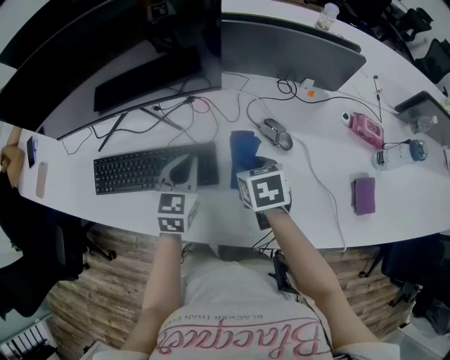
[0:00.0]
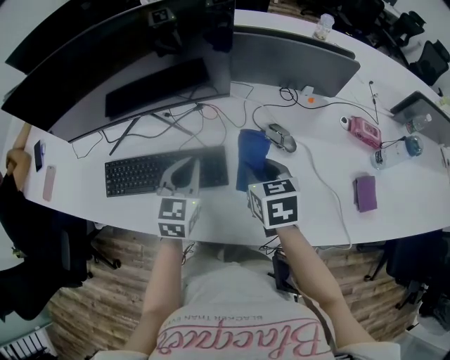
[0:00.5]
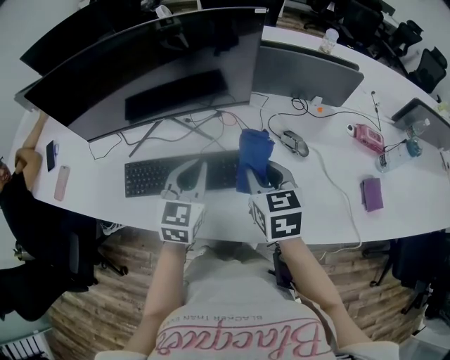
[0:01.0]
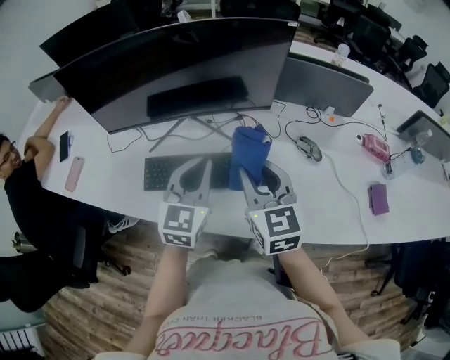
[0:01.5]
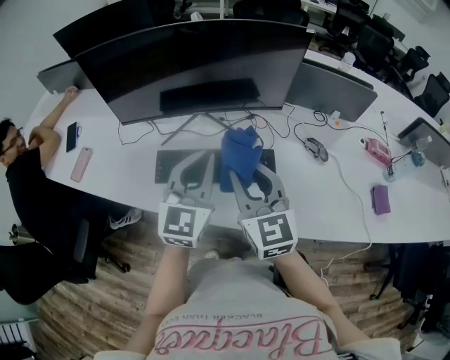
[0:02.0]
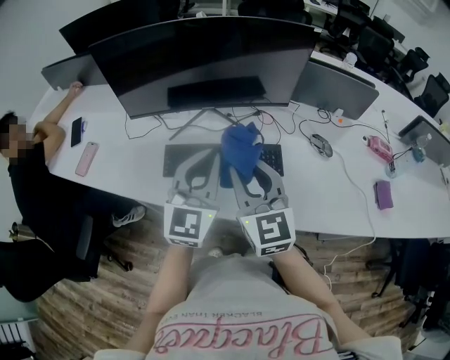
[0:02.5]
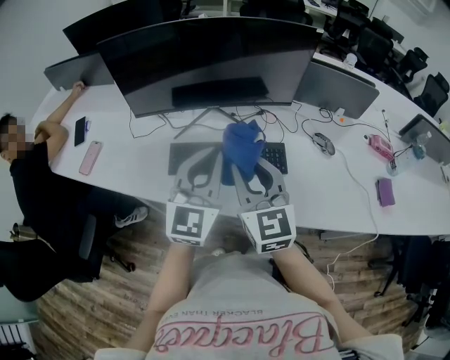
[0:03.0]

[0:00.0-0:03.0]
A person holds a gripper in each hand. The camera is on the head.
0:00.0 to 0:01.5: Both grippers travel together upward, to the left and backward, approximately 25 cm. The right gripper tilts its fingers roughly 40 degrees upward.
0:01.5 to 0:03.0: The left gripper goes approximately 10 cm backward, to the left and upward; the right gripper goes roughly 15 cm to the left and backward.

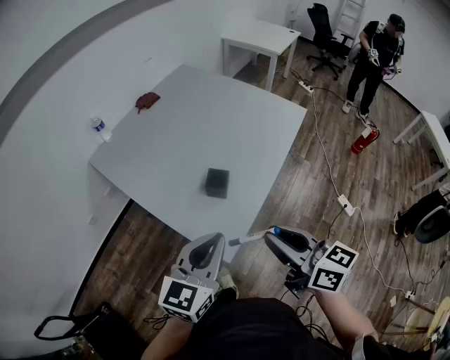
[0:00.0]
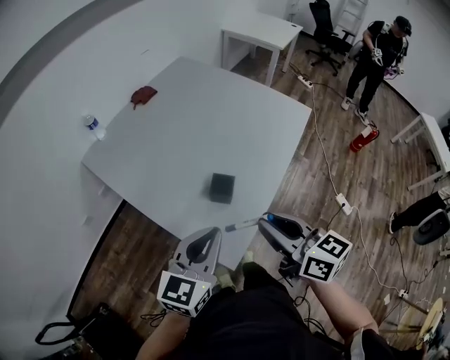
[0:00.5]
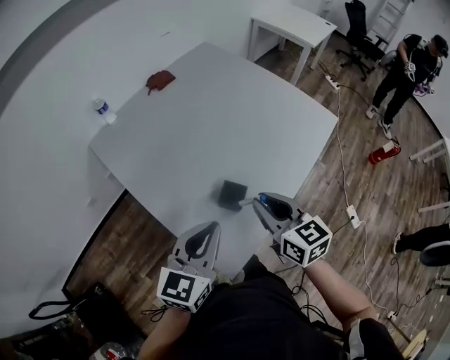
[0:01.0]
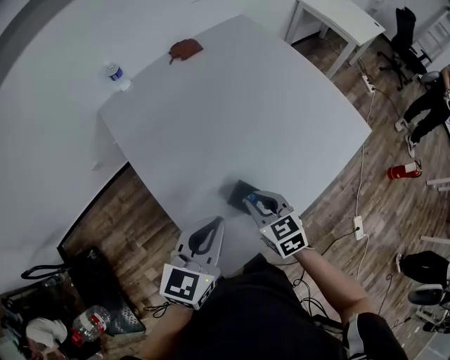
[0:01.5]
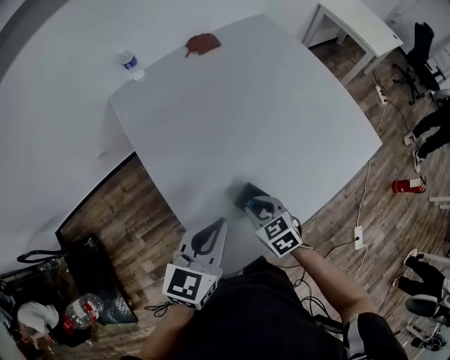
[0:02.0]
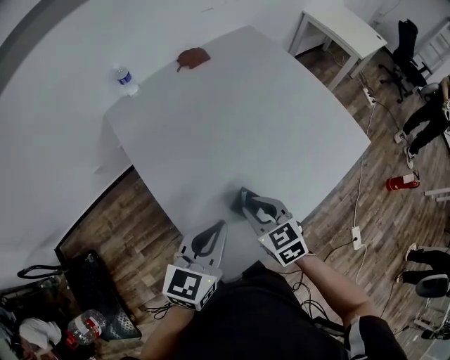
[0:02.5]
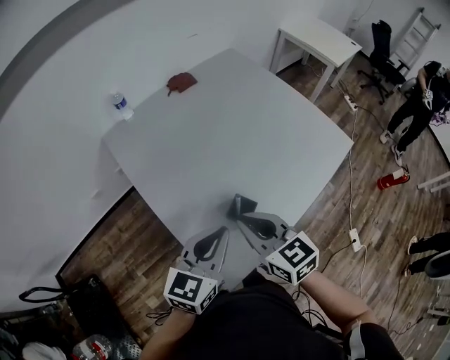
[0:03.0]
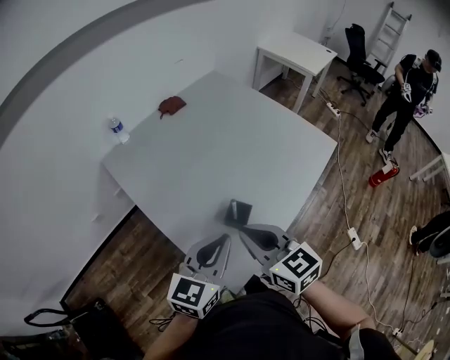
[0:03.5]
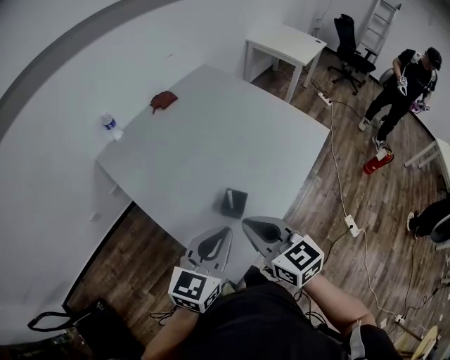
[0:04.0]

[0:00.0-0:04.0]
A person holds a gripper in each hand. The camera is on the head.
0:00.0 to 0:02.0: The right gripper heads downward and forward, covering approximately 35 cm, and points its fingers roughly 40 degrees further downward, while the left gripper moves forward and downward, roughly 20 cm, and changes its angle by approximately 30 degrees.
0:02.0 to 0:04.0: The left gripper goes some 10 cm backward and upward, and rotates approximately 20 degrees. Meanwhile the right gripper is displaced upward by some 20 cm, and turns by about 40 degrees.

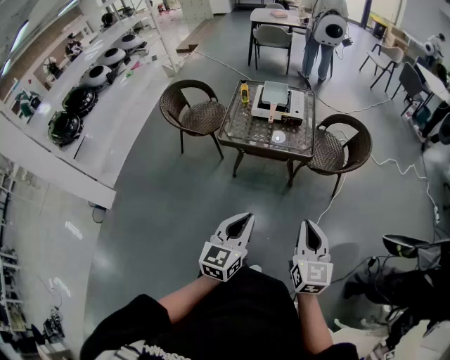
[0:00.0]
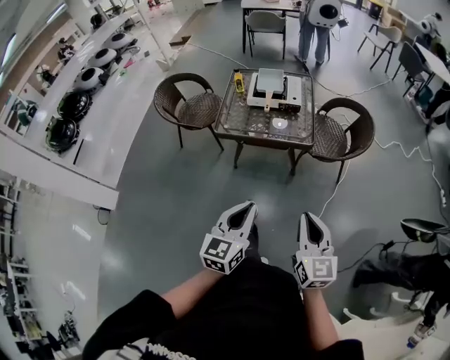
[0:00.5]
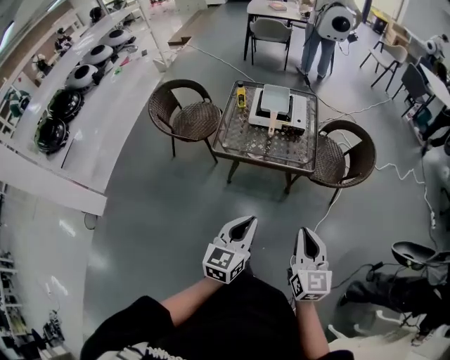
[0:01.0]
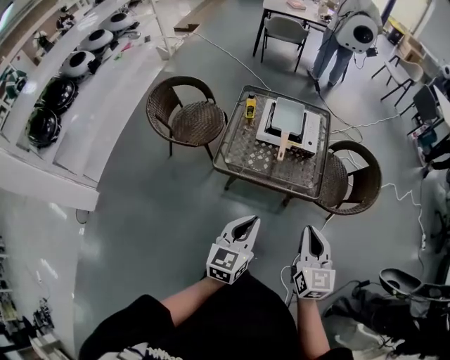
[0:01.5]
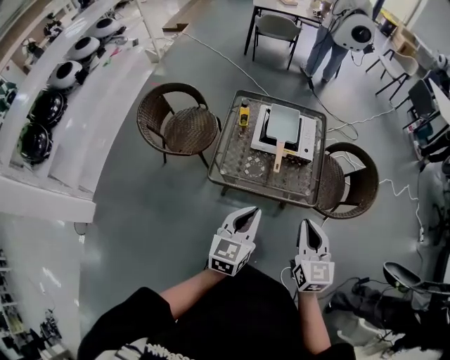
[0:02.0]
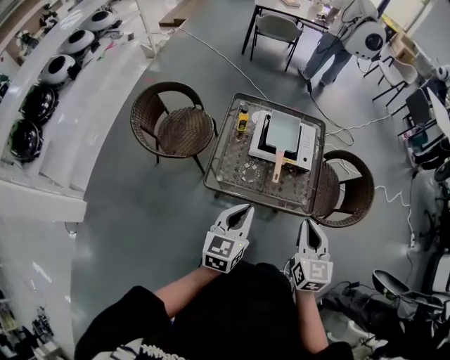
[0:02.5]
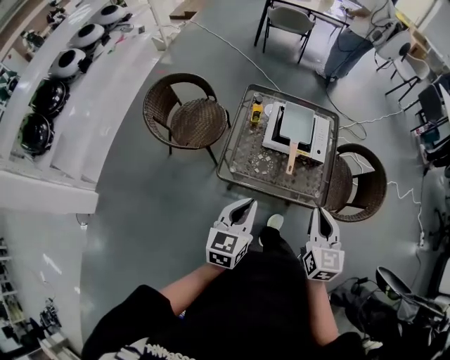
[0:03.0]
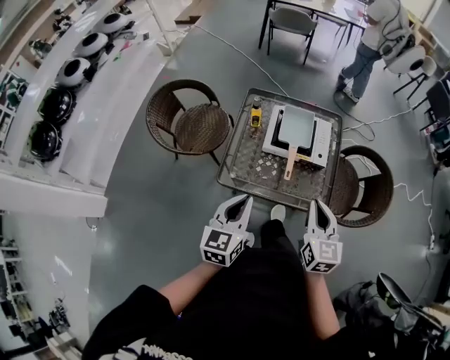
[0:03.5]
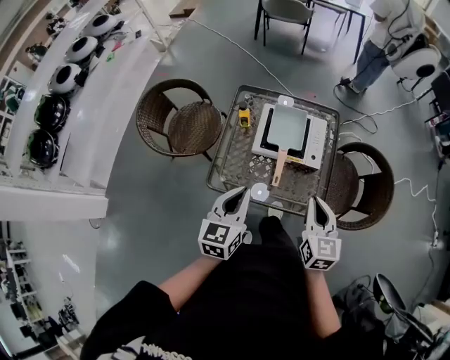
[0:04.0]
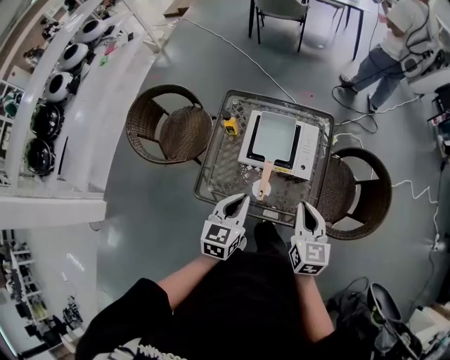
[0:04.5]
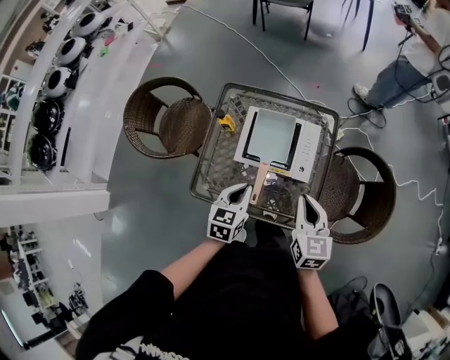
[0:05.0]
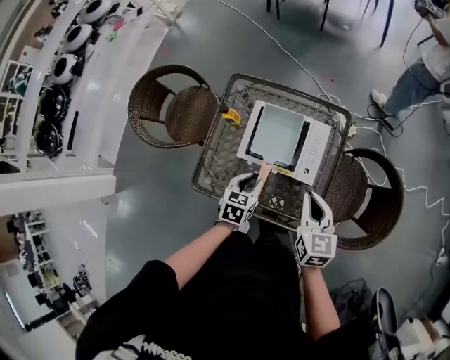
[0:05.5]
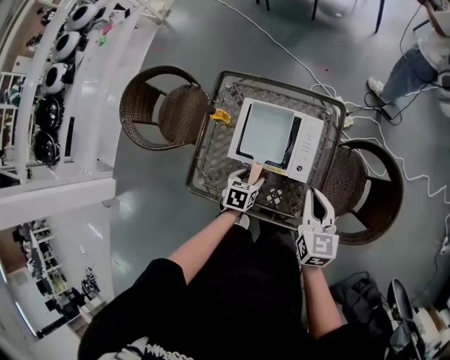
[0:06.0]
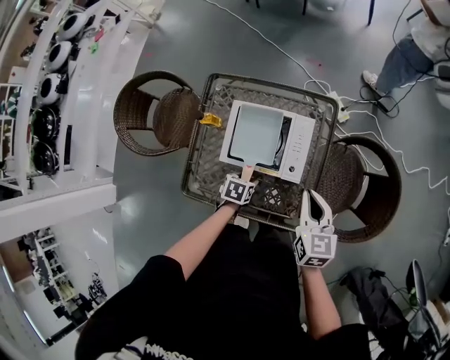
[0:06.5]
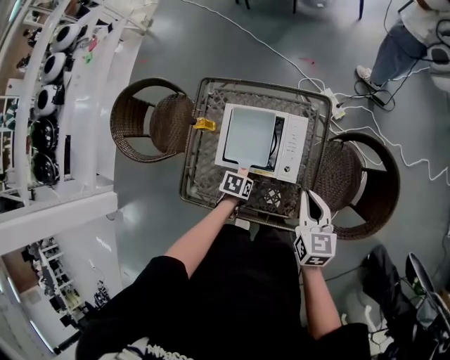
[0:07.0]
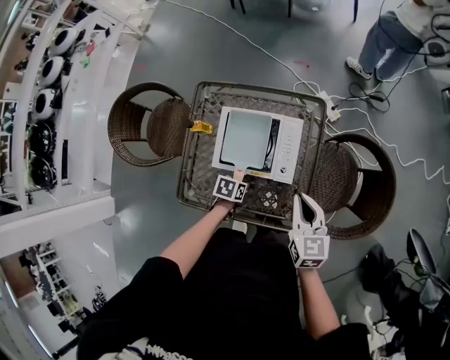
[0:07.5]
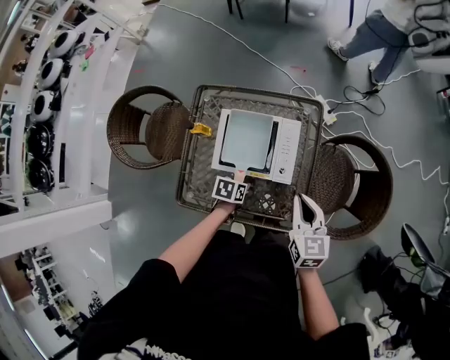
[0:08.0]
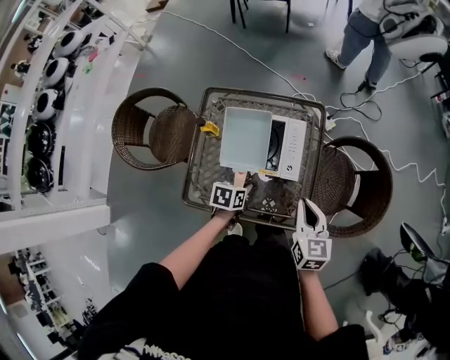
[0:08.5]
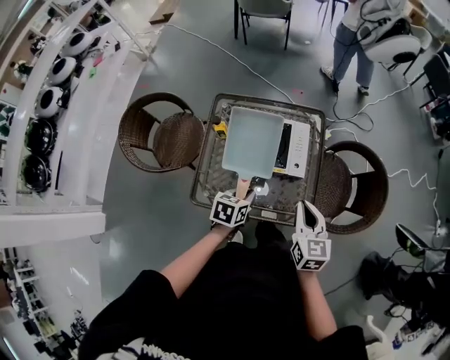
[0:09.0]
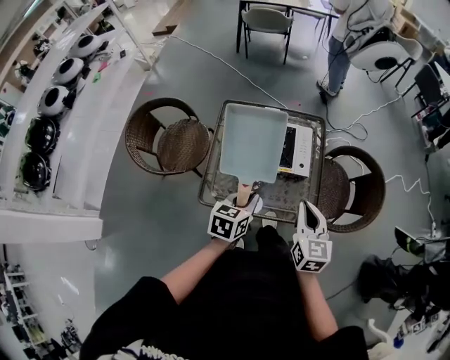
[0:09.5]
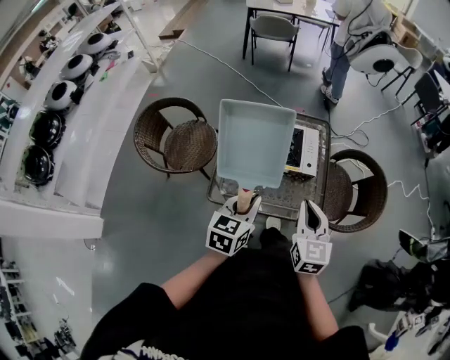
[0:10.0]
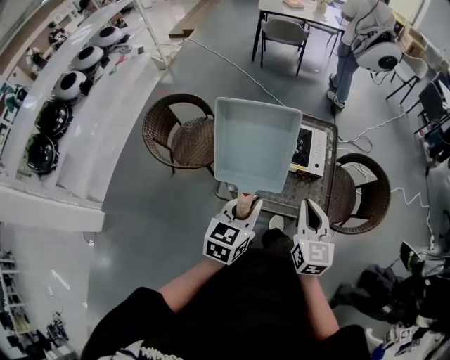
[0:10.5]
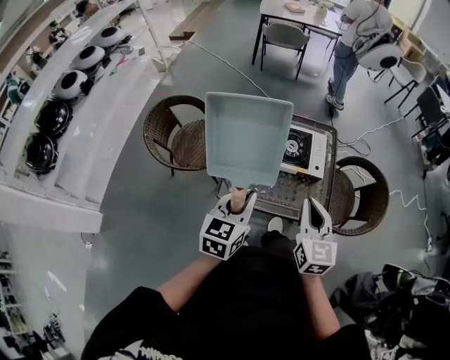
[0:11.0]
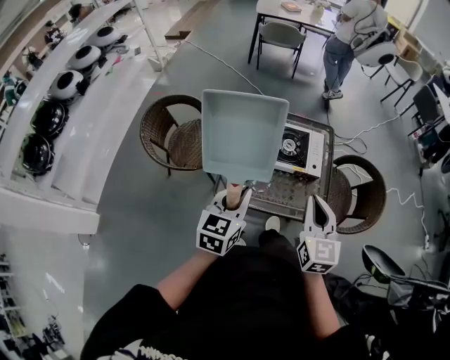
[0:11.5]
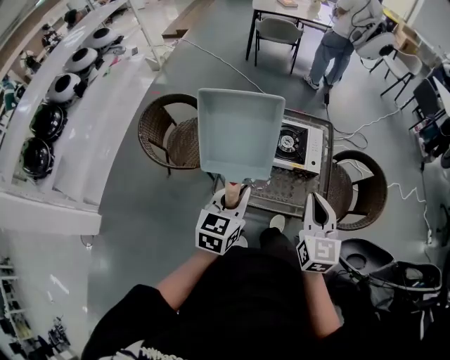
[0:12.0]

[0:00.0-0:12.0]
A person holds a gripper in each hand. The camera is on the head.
0:00.0 to 0:02.0: Both grippers are carried forward, some 40 cm.
0:02.0 to 0:04.0: Both grippers move forward, approximately 15 cm.
0:04.0 to 0:06.0: The right gripper travels forward, downward and to the right by roughly 25 cm; the left gripper goes some 35 cm downward and forward, angles its fingers downward, by some 40 degrees, and opens.
0:06.0 to 0:08.0: The left gripper closes up.
0:08.0 to 0:10.0: The left gripper is displaced upward and backward by some 40 cm, and angles its fingers upward, by approximately 30 degrees, while the right gripper shifts about 30 cm backward, upward and to the left.
0:10.0 to 0:12.0: The left gripper shifts some 5 cm to the left. Meanwhile the right gripper changes place by approximately 5 cm.

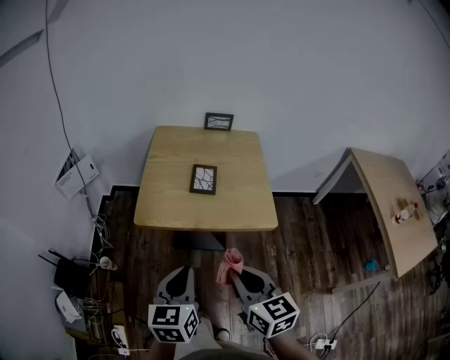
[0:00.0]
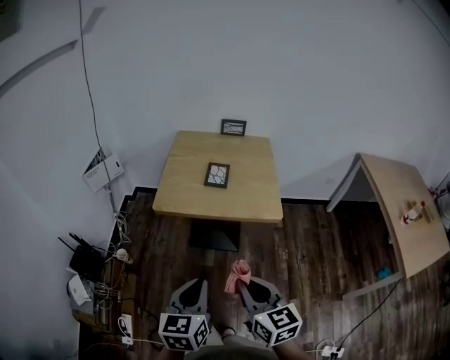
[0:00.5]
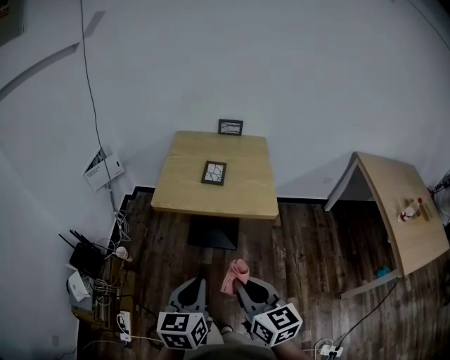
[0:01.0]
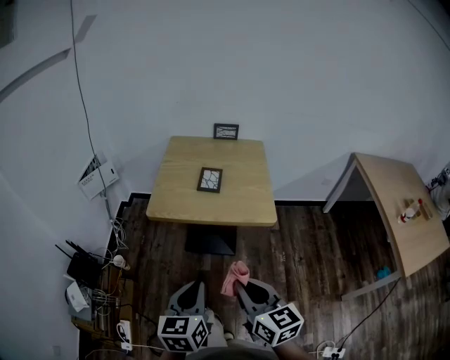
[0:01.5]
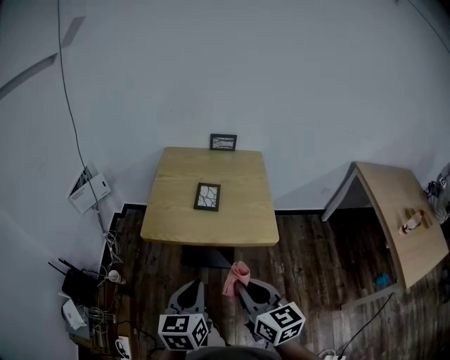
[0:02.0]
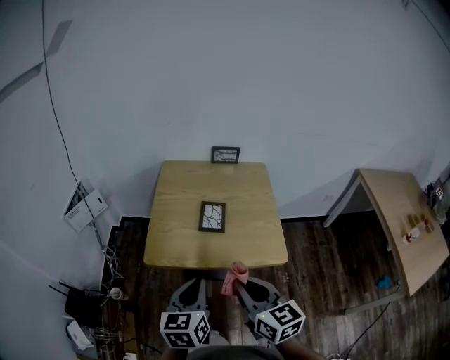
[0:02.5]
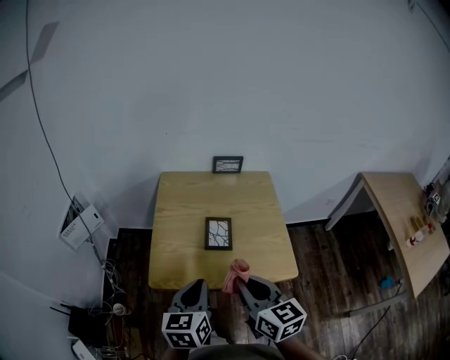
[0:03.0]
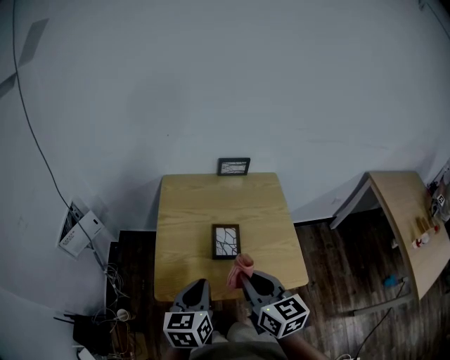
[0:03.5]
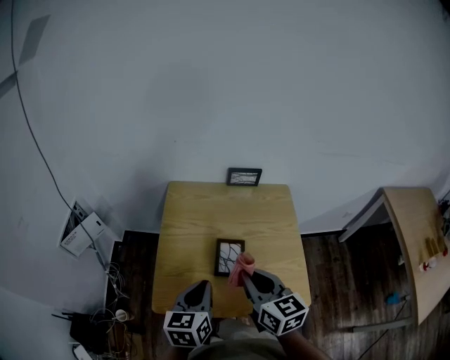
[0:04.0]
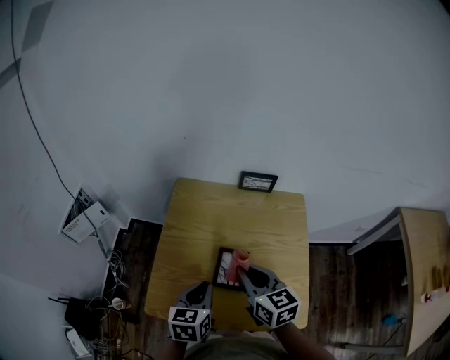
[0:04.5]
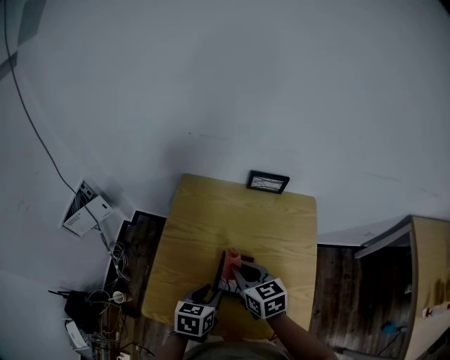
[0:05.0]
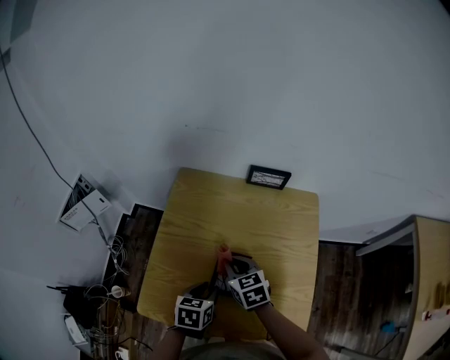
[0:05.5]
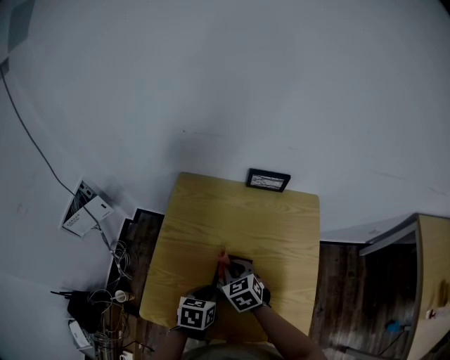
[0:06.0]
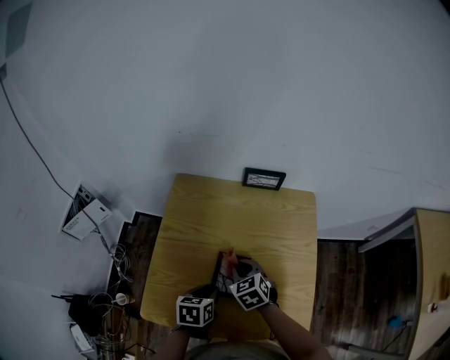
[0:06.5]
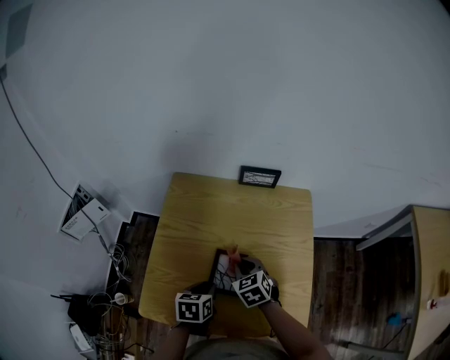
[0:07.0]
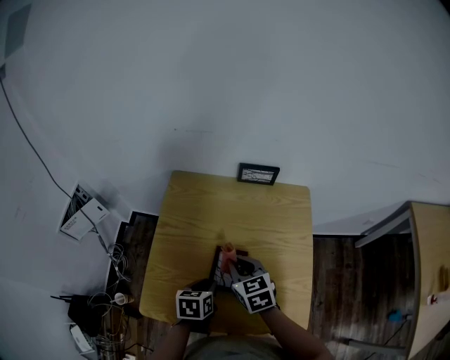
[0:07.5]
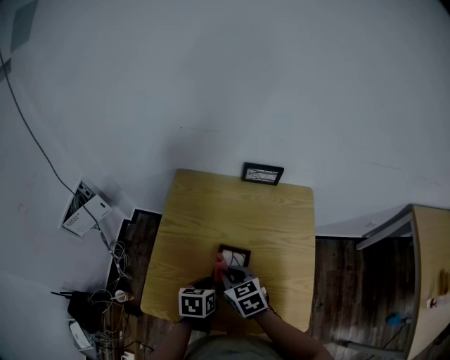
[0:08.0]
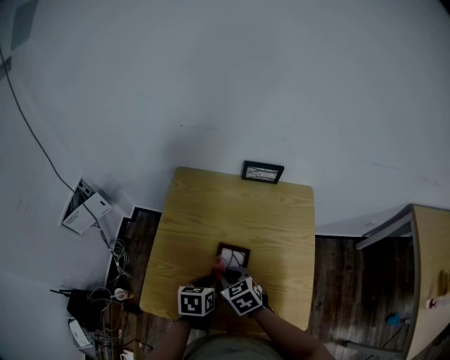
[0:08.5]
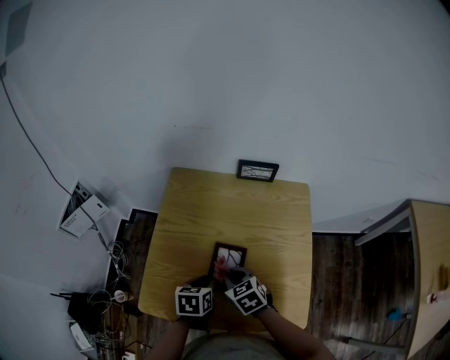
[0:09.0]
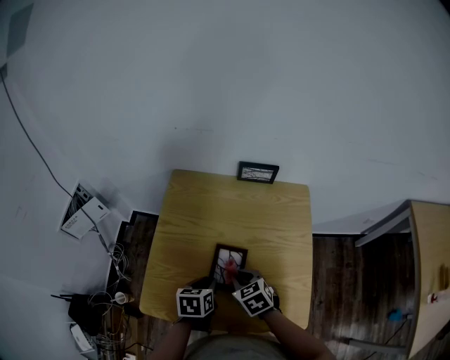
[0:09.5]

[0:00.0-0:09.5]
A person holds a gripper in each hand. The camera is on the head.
0:00.0 to 0:02.0: The right gripper moves roughly 15 cm backward and comes back, while the left gripper moves approximately 15 cm backward and comes back.
0:02.0 to 0:04.0: The grippers both shift forward by about 35 cm.
0:04.0 to 0:05.5: Both grippers travel together downward and forward, some 20 cm. The left gripper rotates approximately 30 degrees, and opens up; the right gripper rotates roughly 30 degrees.
0:05.5 to 0:07.5: The right gripper moves approximately 5 cm.
0:07.5 to 0:09.5: The right gripper travels downward and backward by approximately 10 cm.
